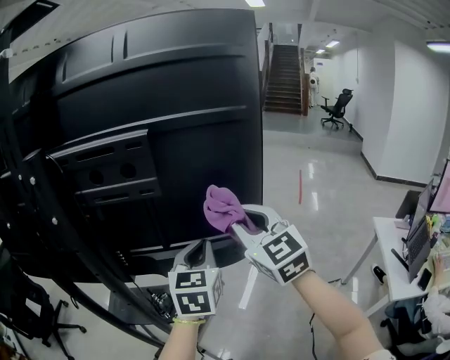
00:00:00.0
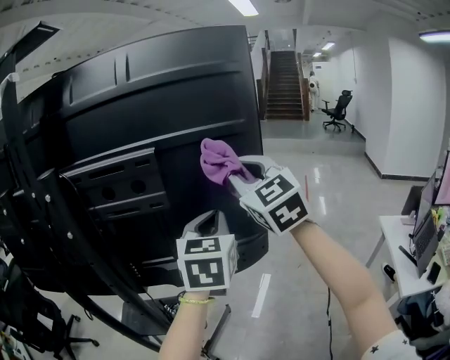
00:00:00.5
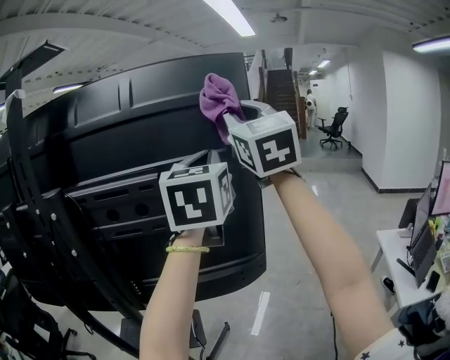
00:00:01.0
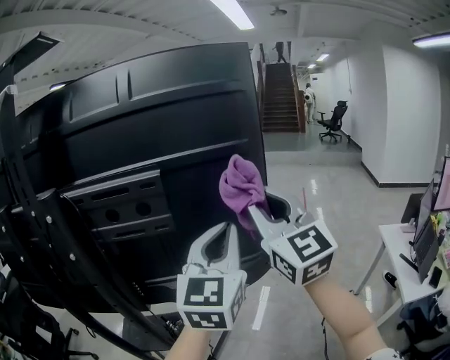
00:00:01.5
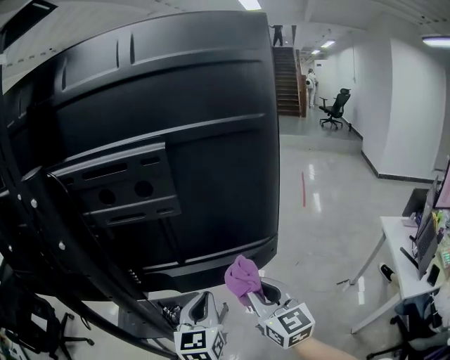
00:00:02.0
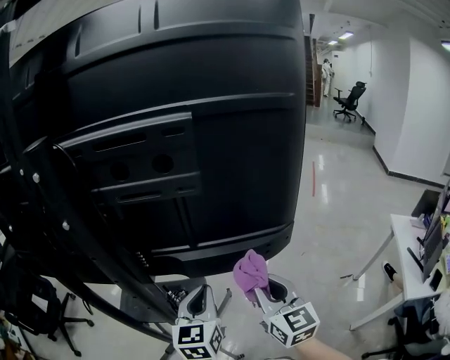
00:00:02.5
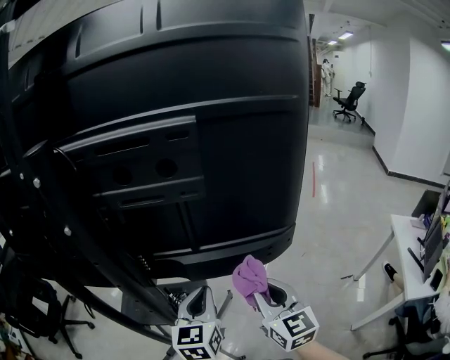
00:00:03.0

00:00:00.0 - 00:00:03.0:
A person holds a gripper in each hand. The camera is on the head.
00:00:00.0 - 00:00:01.5: Both grippers travel together upward, about 15 cm. The left gripper swivels some 20 degrees.
00:00:01.5 - 00:00:03.0: The left gripper goes about 30 cm downward and to the left, and swivels some 30 degrees; the right gripper travels downward by some 30 cm, and swivels about 30 degrees.

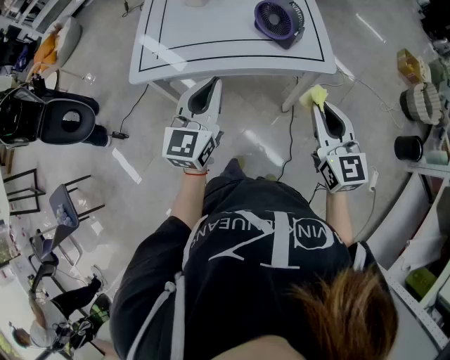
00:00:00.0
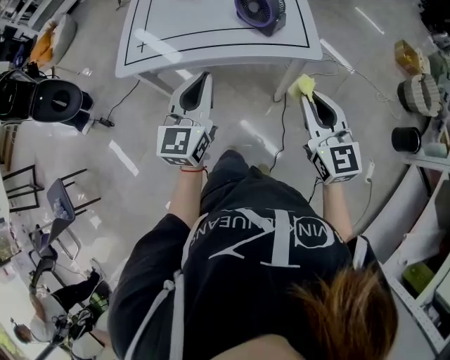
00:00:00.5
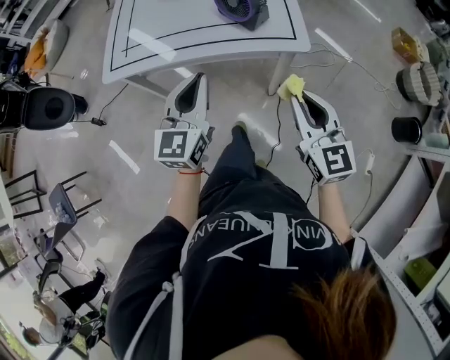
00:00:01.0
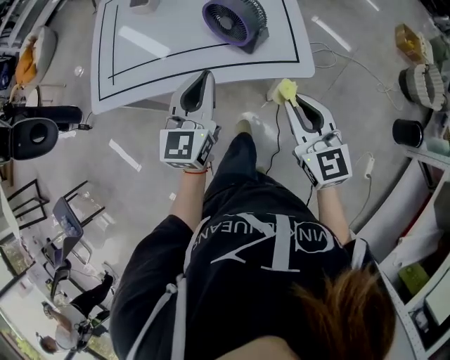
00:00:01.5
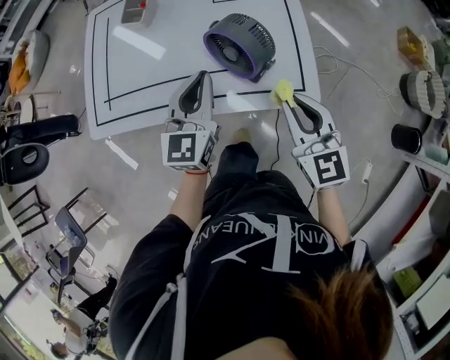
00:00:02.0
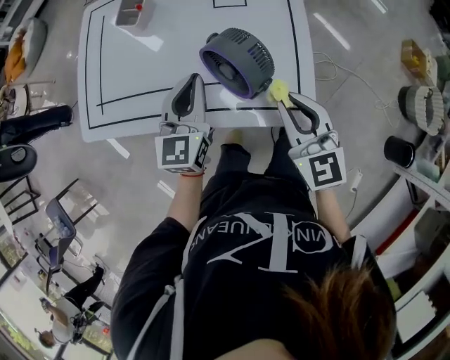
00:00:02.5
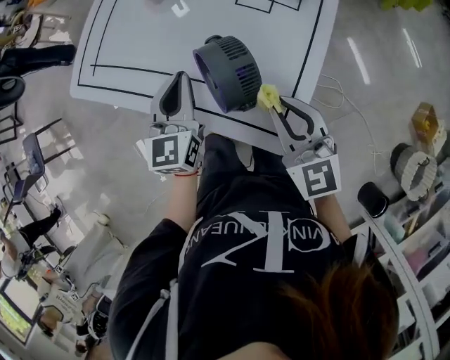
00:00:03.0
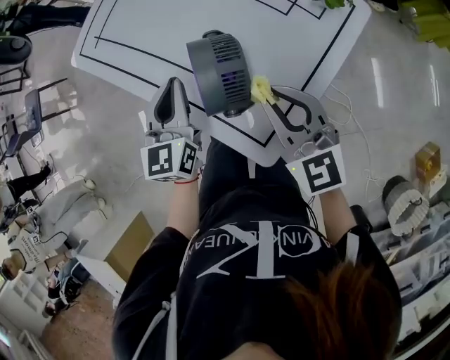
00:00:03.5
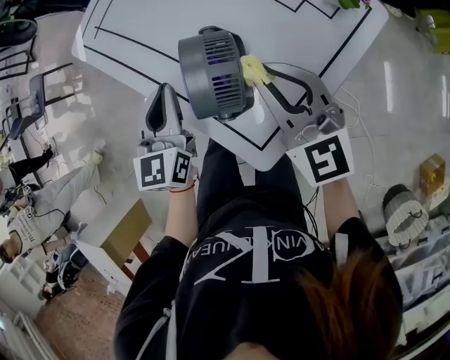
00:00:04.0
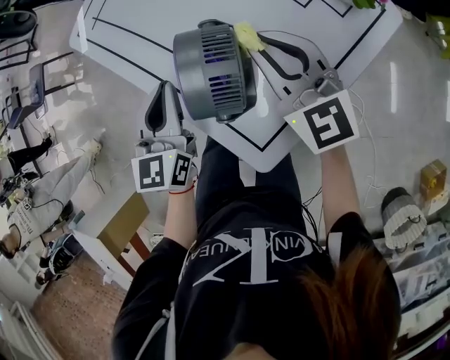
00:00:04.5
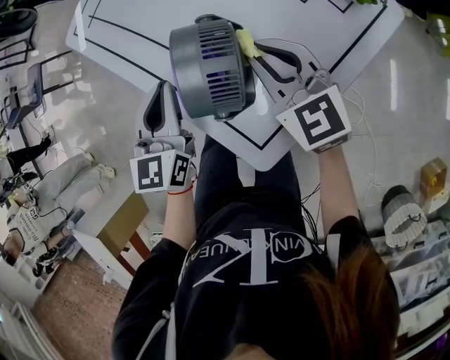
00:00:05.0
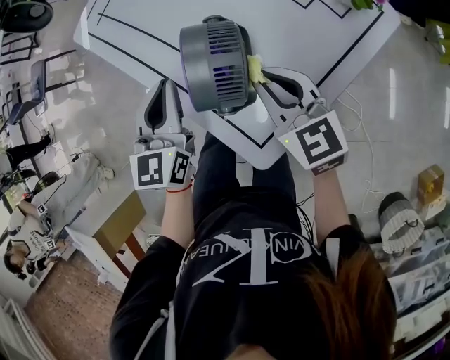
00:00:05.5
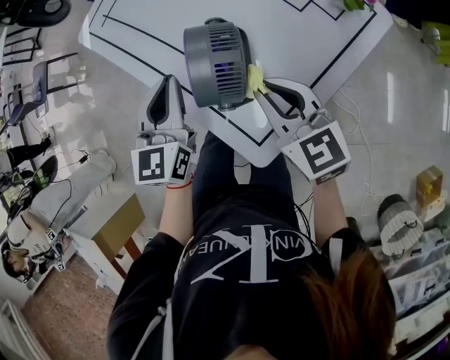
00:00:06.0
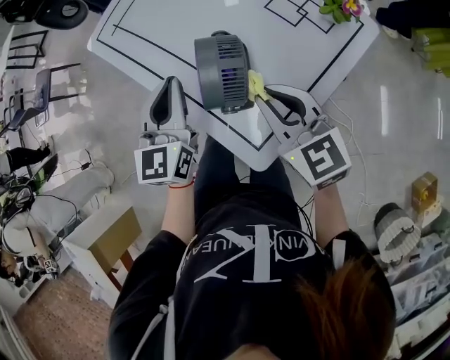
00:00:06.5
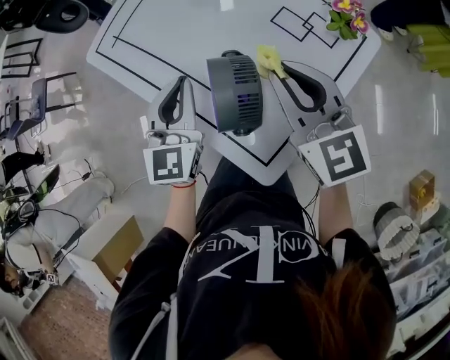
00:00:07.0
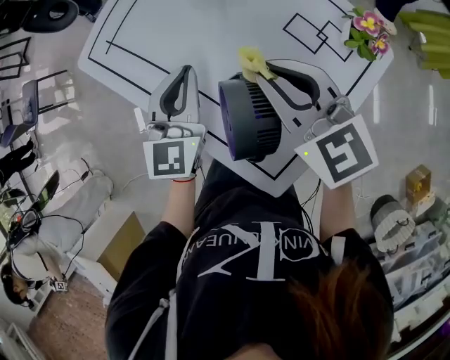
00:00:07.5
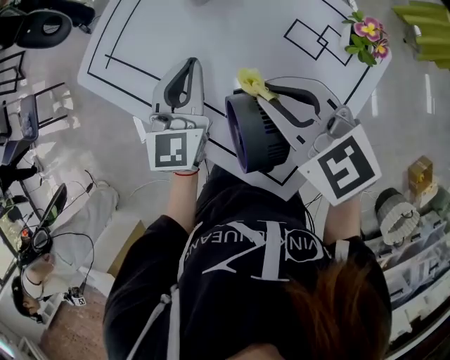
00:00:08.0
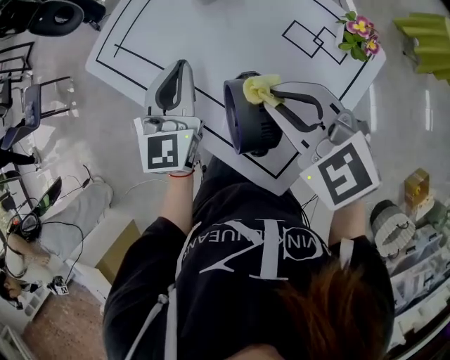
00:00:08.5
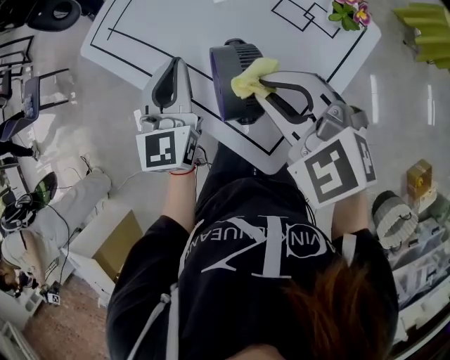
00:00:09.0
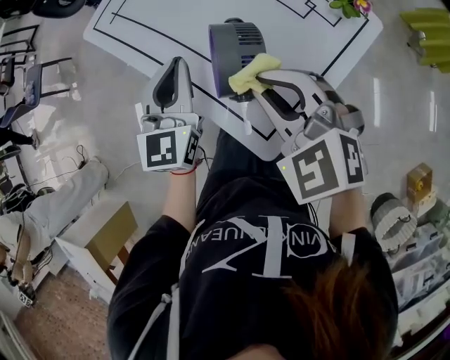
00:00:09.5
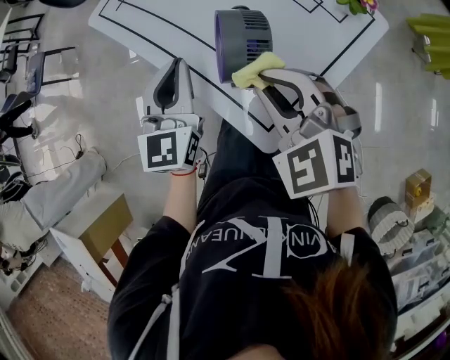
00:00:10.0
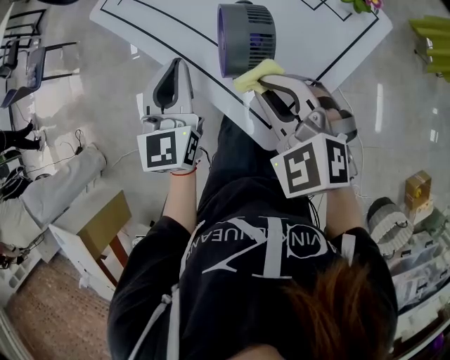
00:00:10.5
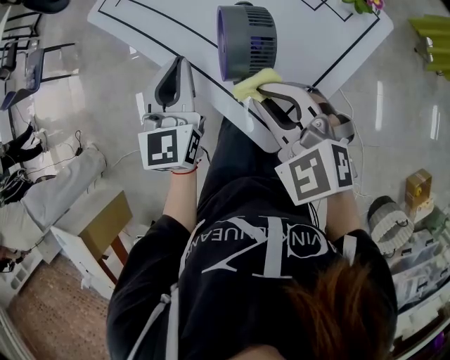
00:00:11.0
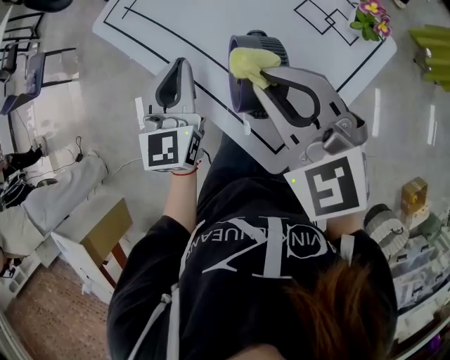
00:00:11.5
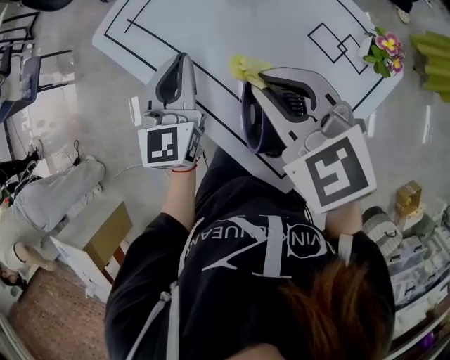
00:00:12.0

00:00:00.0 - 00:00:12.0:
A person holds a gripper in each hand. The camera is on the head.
00:00:00.0 - 00:00:02.0: The right gripper moves forward, about 20 cm. Meanwhile the left gripper goes roughly 25 cm forward and to the right.
00:00:02.0 - 00:00:04.0: The left gripper swivels some 50 degrees. The right gripper ends up approximately 15 cm from where it was, and turns by about 50 degrees.
00:00:04.0 - 00:00:06.0: The right gripper is displaced downward by some 5 cm, and rotates approximately 20 degrees.
00:00:06.0 - 00:00:08.0: The left gripper is displaced forward by about 15 cm, while the right gripper shifts about 15 cm forward and upward.
00:00:08.0 - 00:00:10.0: The left gripper goes about 20 cm backward and to the left, while the right gripper moves backward, some 15 cm, and turns by about 30 degrees.
00:00:10.0 - 00:00:12.0: Both grippers move forward, approximately 15 cm.

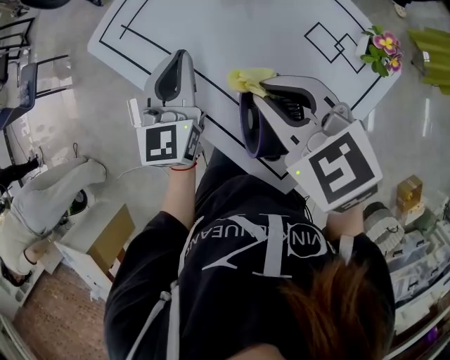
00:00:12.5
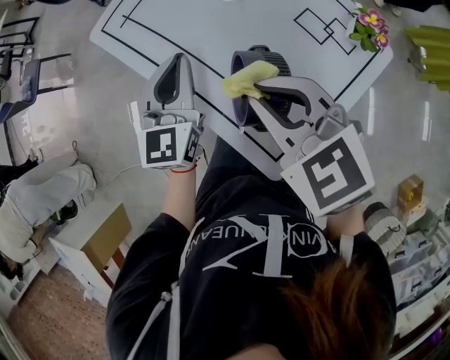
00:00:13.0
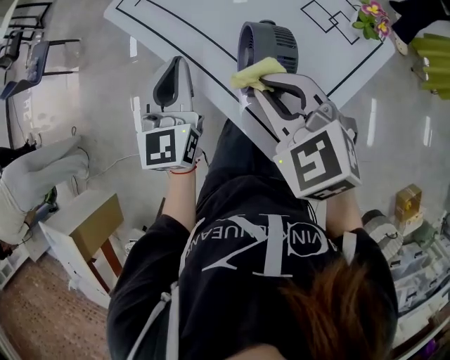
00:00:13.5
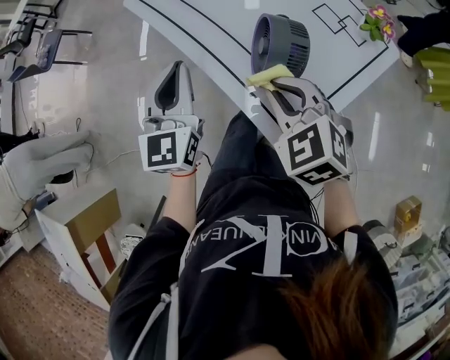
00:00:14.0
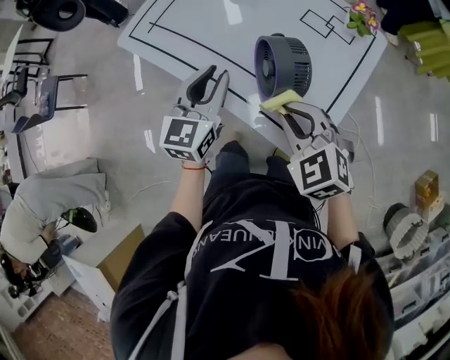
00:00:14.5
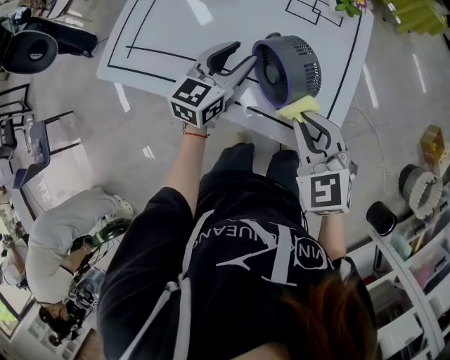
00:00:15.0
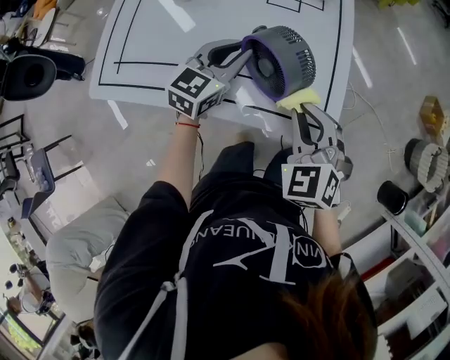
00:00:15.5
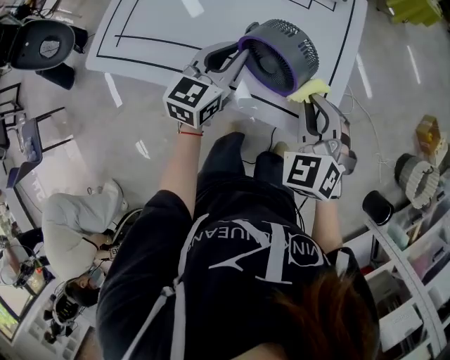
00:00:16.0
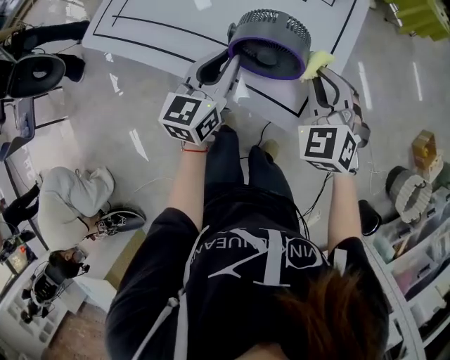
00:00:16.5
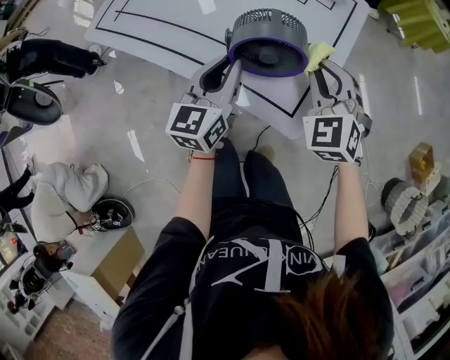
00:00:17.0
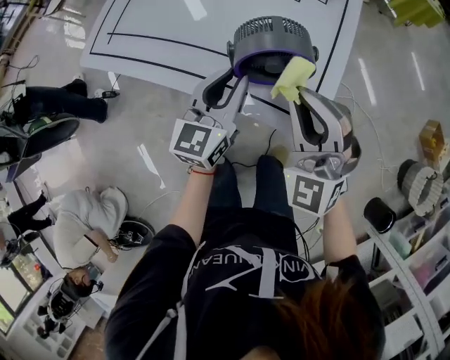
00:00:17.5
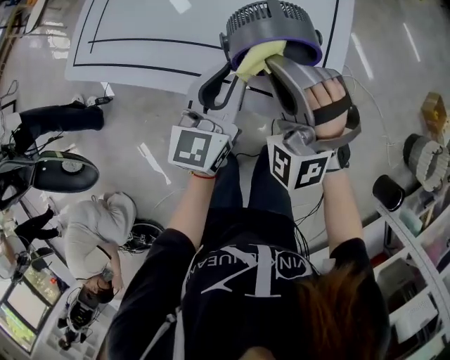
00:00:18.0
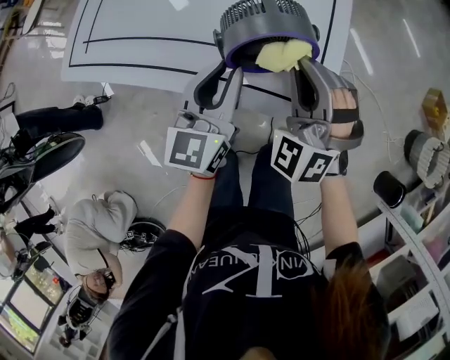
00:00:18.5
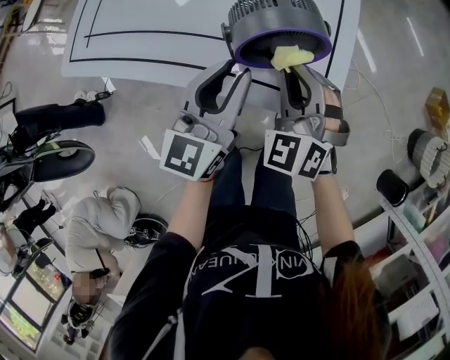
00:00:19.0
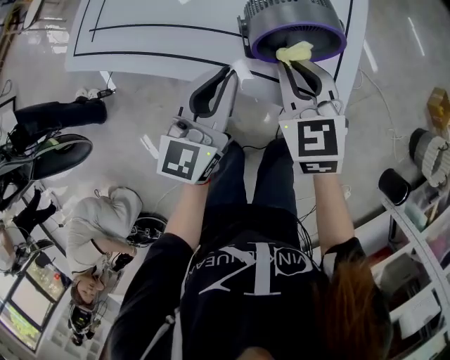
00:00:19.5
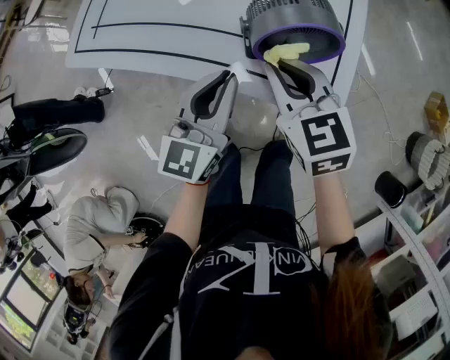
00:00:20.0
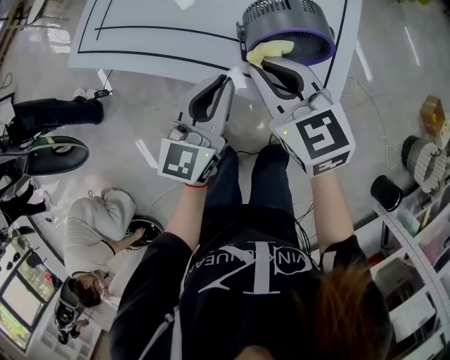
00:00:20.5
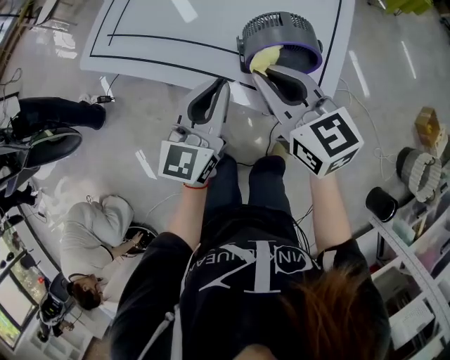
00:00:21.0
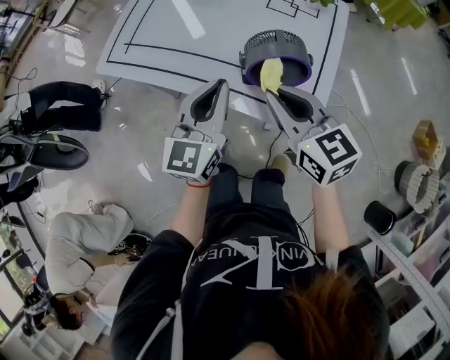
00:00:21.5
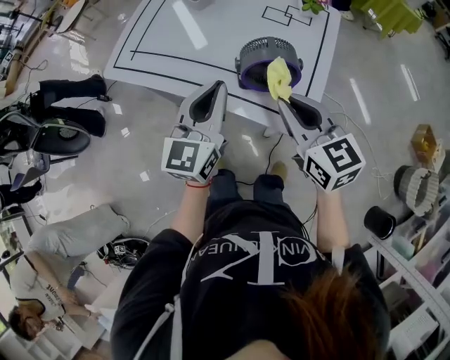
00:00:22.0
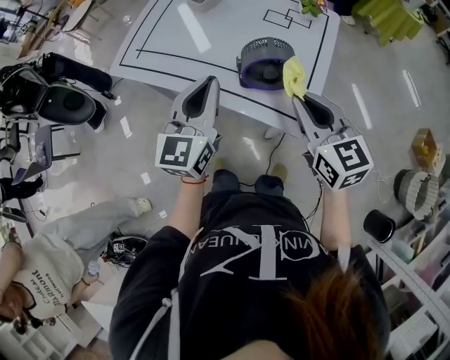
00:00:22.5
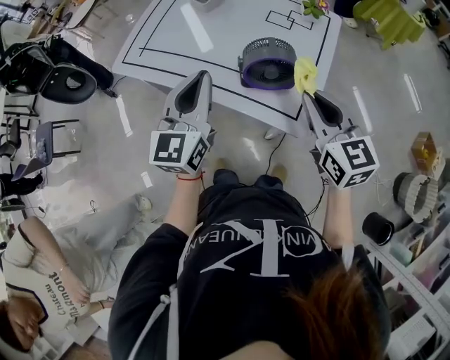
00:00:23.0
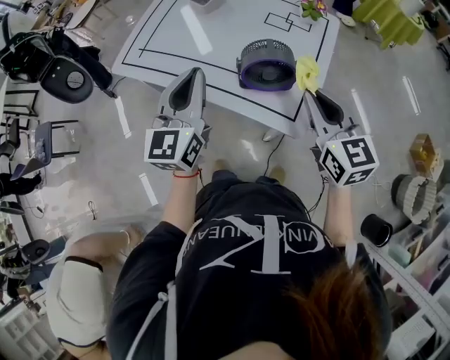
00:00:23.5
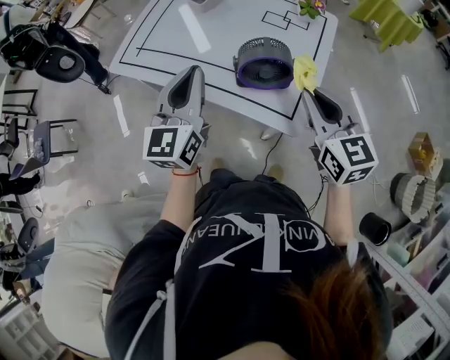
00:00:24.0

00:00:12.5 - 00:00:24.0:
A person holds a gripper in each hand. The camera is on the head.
00:00:12.5 - 00:00:14.5: The right gripper shifts some 15 cm backward and downward, and changes its angle by about 20 degrees, while the left gripper shifts approximately 15 cm backward, and opens.
00:00:14.5 - 00:00:16.5: The left gripper shifts by approximately 10 cm. The right gripper moves some 10 cm, and turns by some 30 degrees.
00:00:16.5 - 00:00:18.5: The right gripper moves approximately 10 cm to the left and comes back, and swivels some 20 degrees.
00:00:18.5 - 00:00:20.0: The left gripper ends up roughly 5 cm from where it was; the right gripper travels to the left by approximately 10 cm, and rolls clockwise, seen from behind, by some 50 degrees.
00:00:20.0 - 00:00:22.0: The right gripper shifts about 15 cm upward and backward. The left gripper is displaced upward by roughly 10 cm.
00:00:22.0 - 00:00:24.0: The left gripper moves roughly 5 cm, while the right gripper heads to the right, covering roughly 5 cm.
